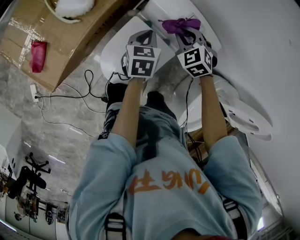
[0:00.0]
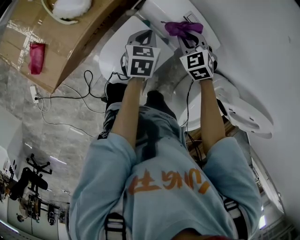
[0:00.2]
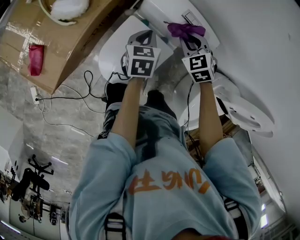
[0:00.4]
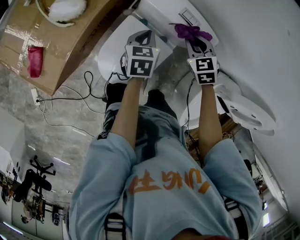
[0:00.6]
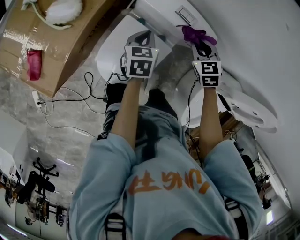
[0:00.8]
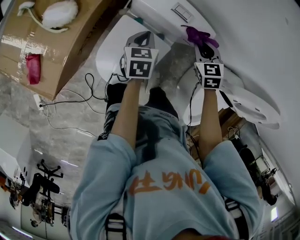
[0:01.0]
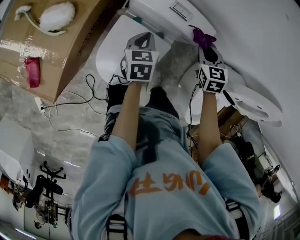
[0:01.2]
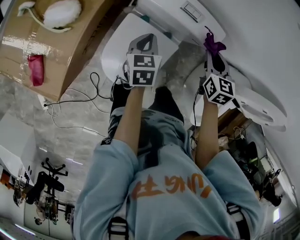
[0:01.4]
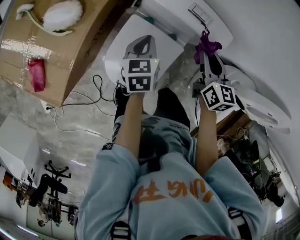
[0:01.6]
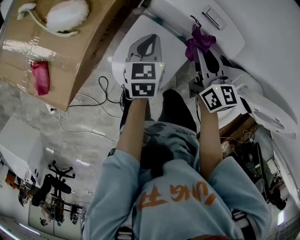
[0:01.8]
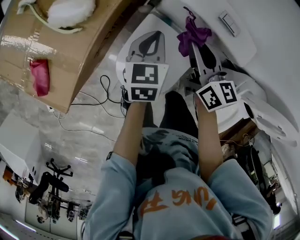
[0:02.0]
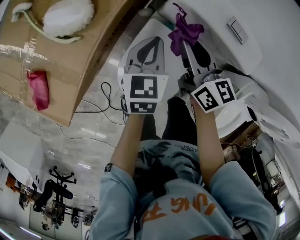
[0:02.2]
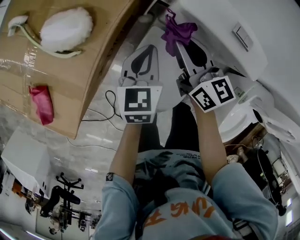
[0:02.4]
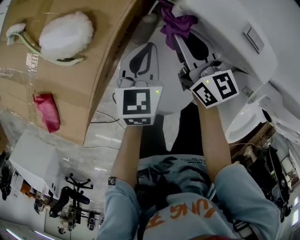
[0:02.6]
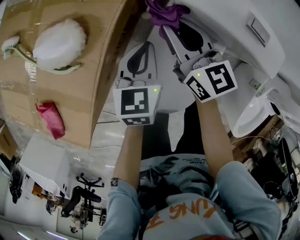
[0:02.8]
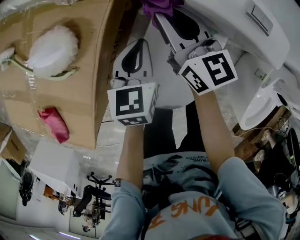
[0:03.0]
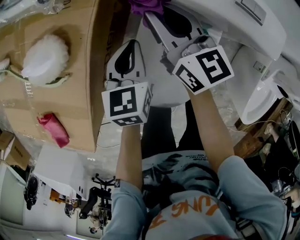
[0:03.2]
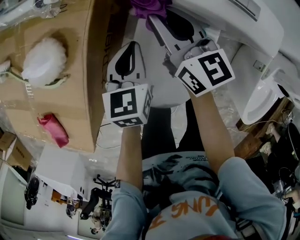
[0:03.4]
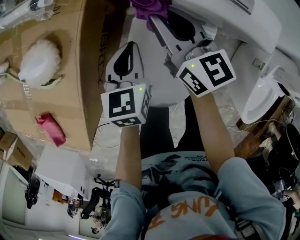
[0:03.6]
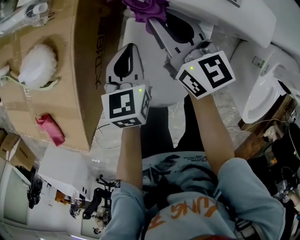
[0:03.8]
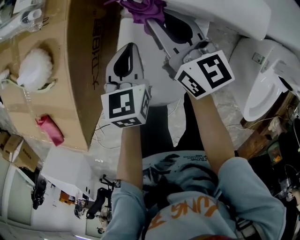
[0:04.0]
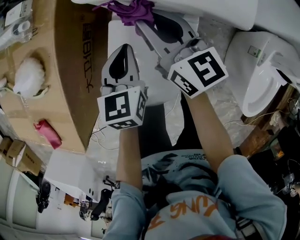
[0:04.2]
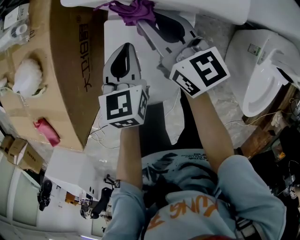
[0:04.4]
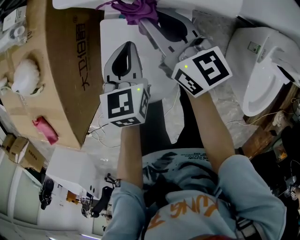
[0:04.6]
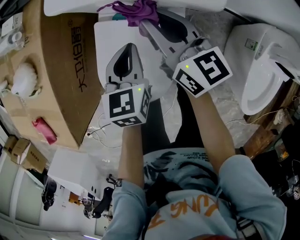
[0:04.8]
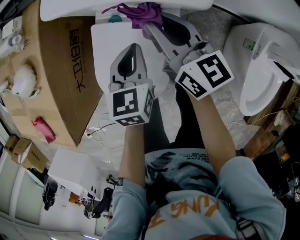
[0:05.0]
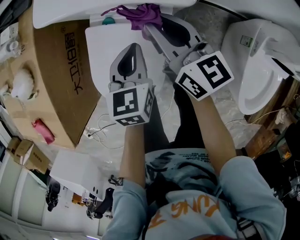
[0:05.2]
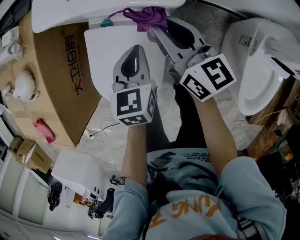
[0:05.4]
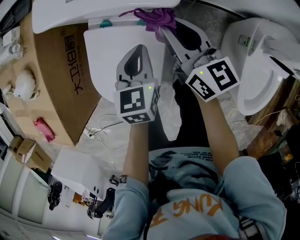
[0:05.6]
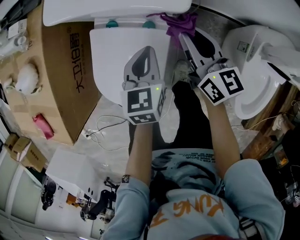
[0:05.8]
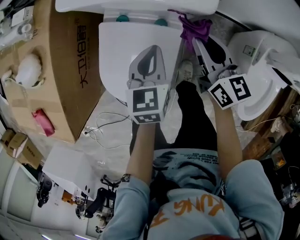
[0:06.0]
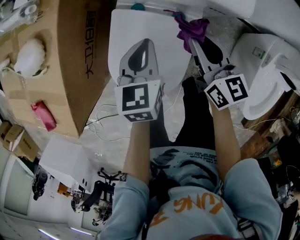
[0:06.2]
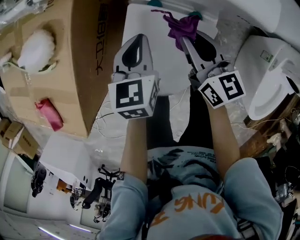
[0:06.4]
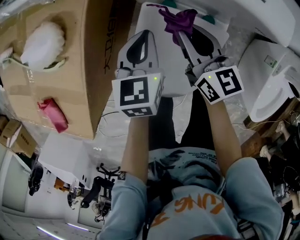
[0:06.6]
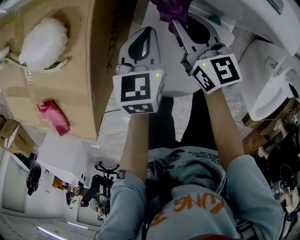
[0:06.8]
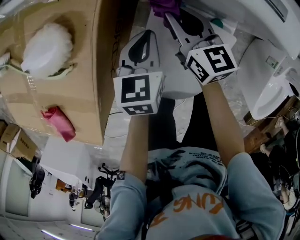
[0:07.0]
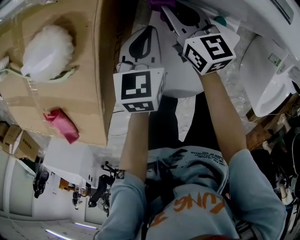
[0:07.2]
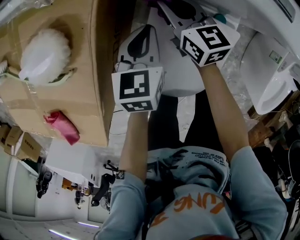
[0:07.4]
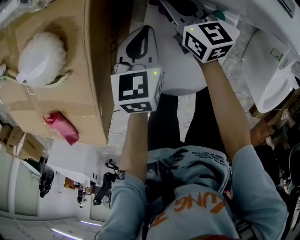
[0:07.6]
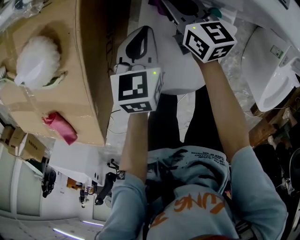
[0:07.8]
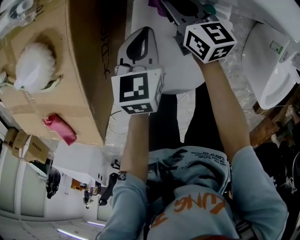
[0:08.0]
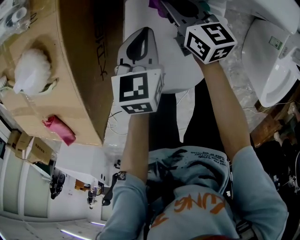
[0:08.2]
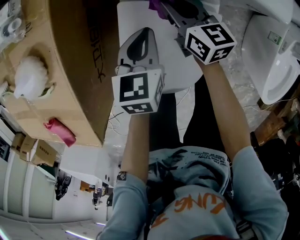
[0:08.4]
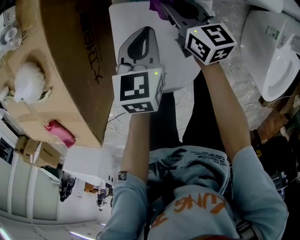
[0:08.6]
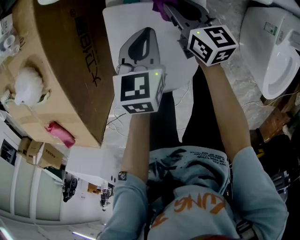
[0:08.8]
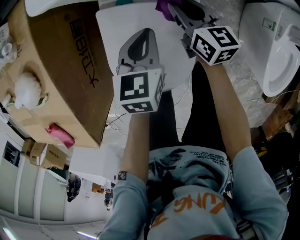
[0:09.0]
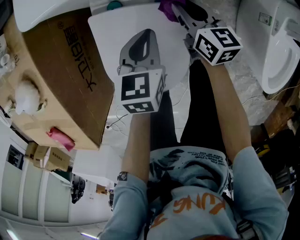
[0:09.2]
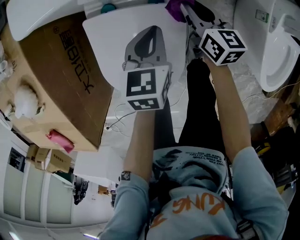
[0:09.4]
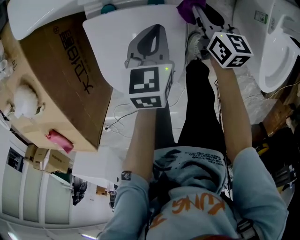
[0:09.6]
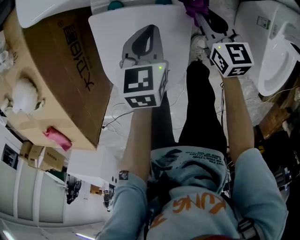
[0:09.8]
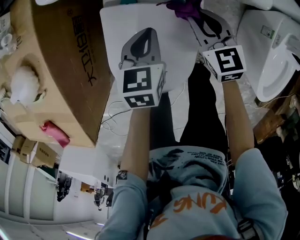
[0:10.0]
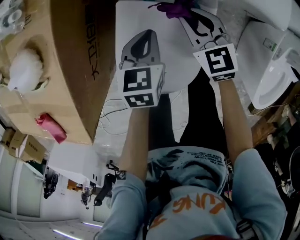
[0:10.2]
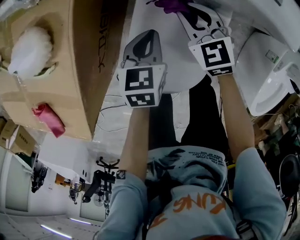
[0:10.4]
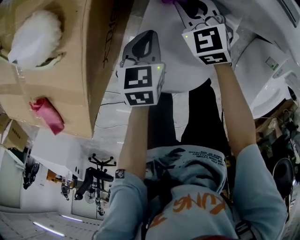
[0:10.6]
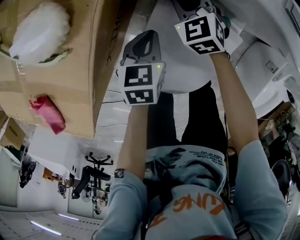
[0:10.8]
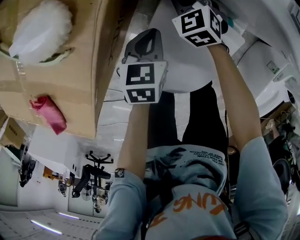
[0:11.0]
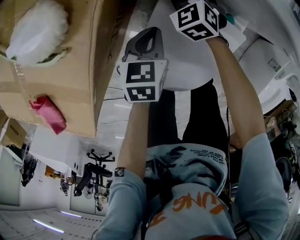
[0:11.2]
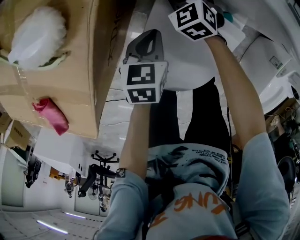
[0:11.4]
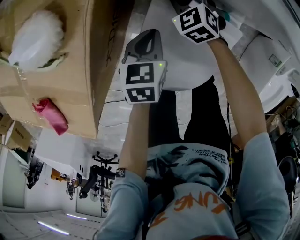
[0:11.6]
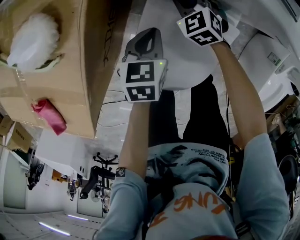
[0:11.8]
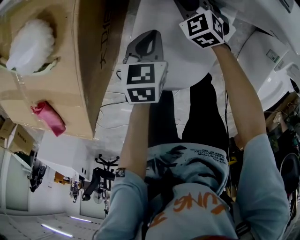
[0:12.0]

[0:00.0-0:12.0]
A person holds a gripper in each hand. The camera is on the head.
0:00.0 to 0:01.6: The right gripper travels to the right and backward by about 10 cm, and rolls clockwise, seen from behind, by some 60 degrees.
0:01.6 to 0:03.0: The right gripper is displaced to the left, forward and downward by approximately 30 cm, and changes its angle by some 20 degrees. The left gripper moves to the left, downward and forward, some 15 cm.
0:03.0 to 0:04.4: The grippers both shift to the right and backward by about 15 cm.
0:04.4 to 0:06.0: The right gripper travels to the right and backward by some 20 cm, while the left gripper heads to the right and backward, covering some 15 cm.
0:06.0 to 0:07.6: The left gripper shifts roughly 25 cm to the left, while the right gripper shifts about 35 cm to the left, forward and downward.
0:07.6 to 0:09.0: The grippers both shift to the right by about 20 cm.
0:09.0 to 0:10.4: Both grippers move to the left, some 15 cm. The right gripper rolls counterclockwise, seen from behind, by some 50 degrees.
0:10.4 to 0:12.0: The right gripper goes approximately 10 cm downward, and travels to the left and back again, roughly 10 cm each way.

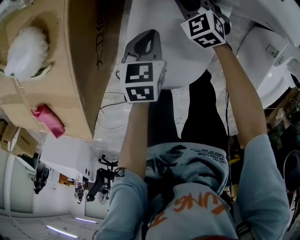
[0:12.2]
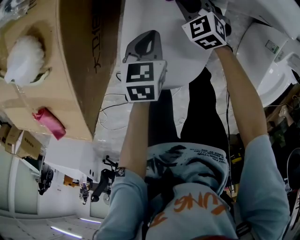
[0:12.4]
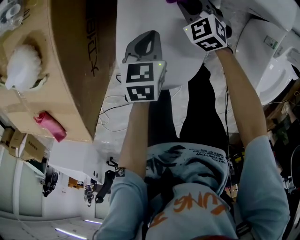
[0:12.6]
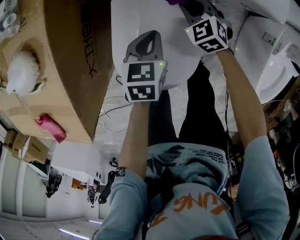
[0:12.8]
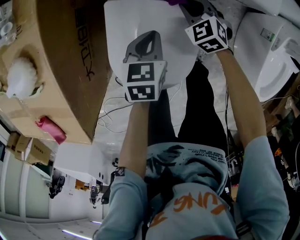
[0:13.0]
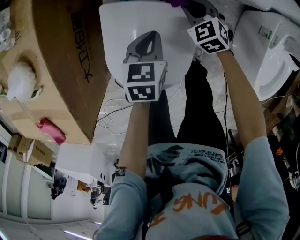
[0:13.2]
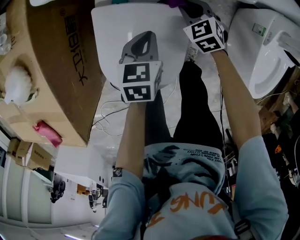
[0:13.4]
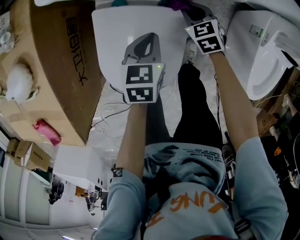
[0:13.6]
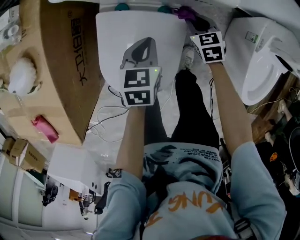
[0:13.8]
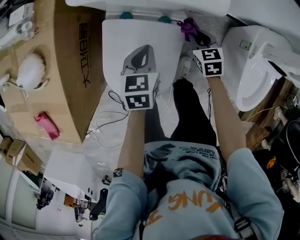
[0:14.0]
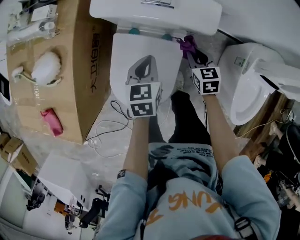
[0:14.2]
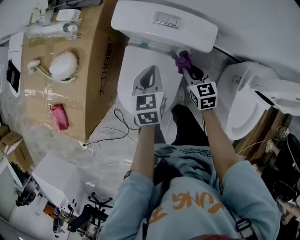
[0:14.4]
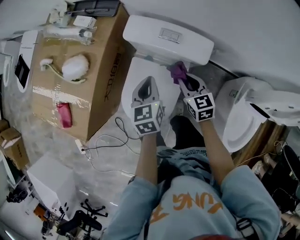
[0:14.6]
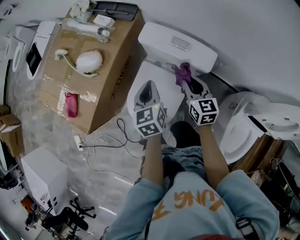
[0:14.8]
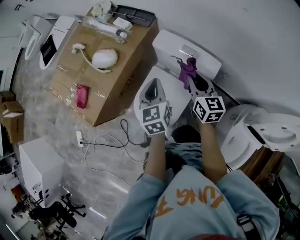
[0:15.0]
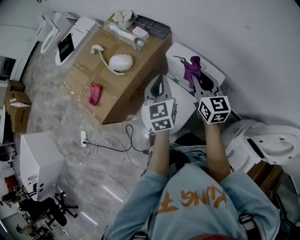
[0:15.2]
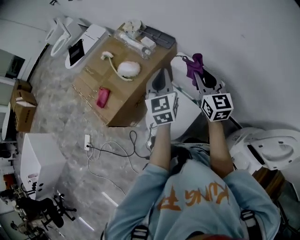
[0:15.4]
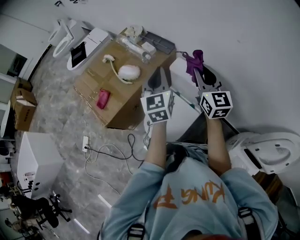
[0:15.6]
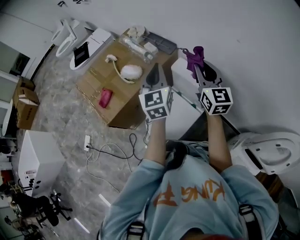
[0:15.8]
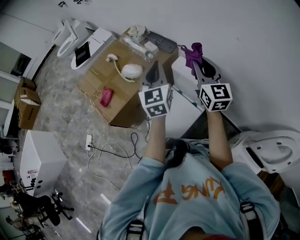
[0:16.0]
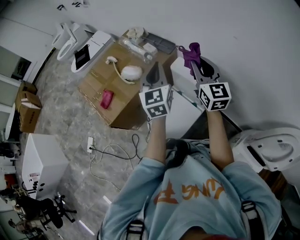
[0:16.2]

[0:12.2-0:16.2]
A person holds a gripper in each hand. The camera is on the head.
0:12.2 to 0:13.6: The grippers both shift to the right by roughly 15 cm. The right gripper turns by roughly 20 degrees.
0:13.6 to 0:14.8: Both grippers travel together upward, some 30 cm. The left gripper rotates approximately 50 degrees; the right gripper changes its angle by approximately 30 degrees.
0:14.8 to 0:16.2: The two grippers go about 30 cm upward. The right gripper swivels approximately 30 degrees. Meanwhile the left gripper swivels some 30 degrees.

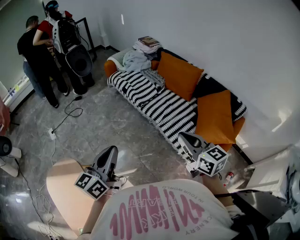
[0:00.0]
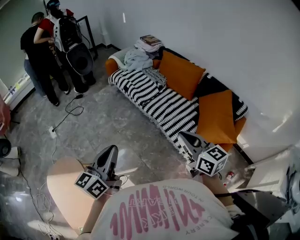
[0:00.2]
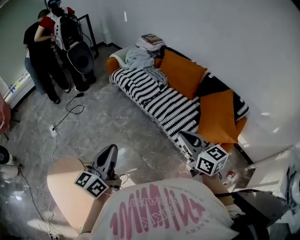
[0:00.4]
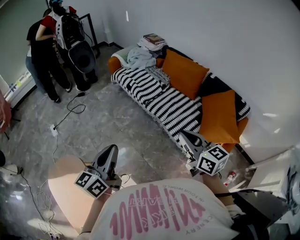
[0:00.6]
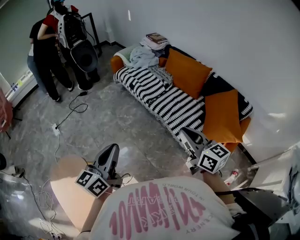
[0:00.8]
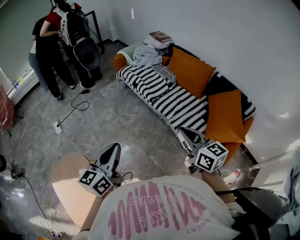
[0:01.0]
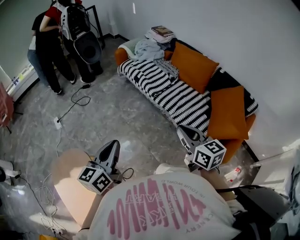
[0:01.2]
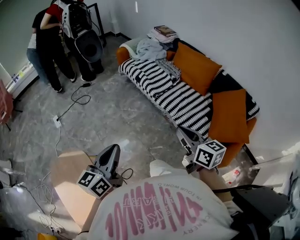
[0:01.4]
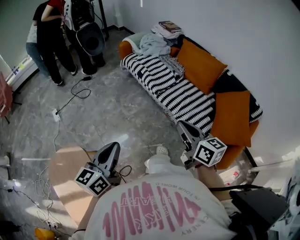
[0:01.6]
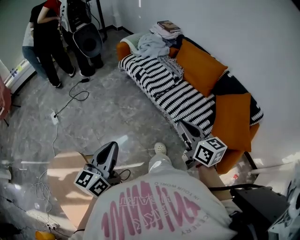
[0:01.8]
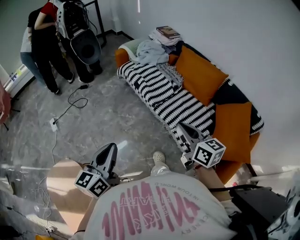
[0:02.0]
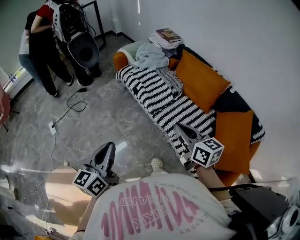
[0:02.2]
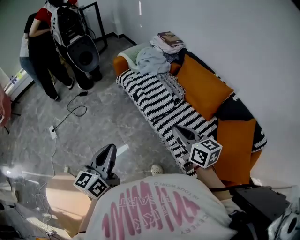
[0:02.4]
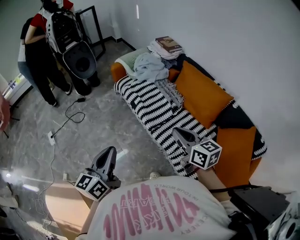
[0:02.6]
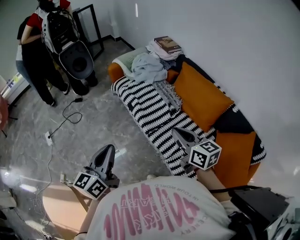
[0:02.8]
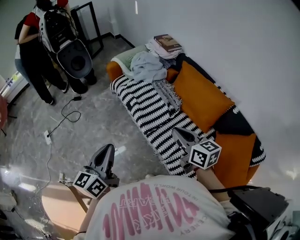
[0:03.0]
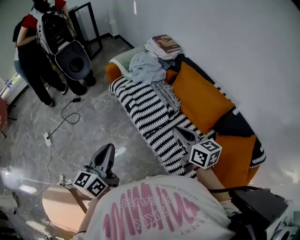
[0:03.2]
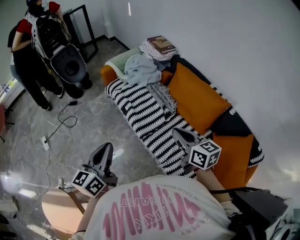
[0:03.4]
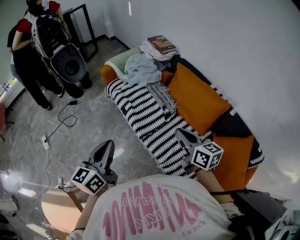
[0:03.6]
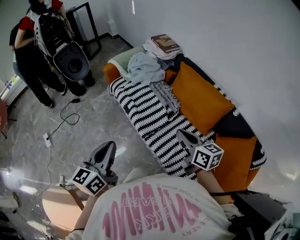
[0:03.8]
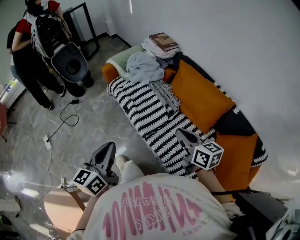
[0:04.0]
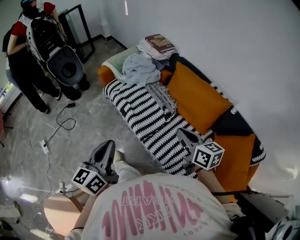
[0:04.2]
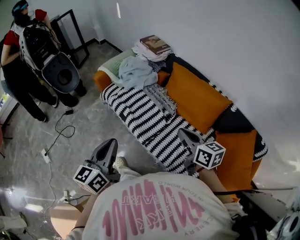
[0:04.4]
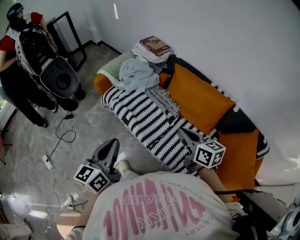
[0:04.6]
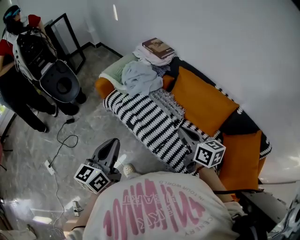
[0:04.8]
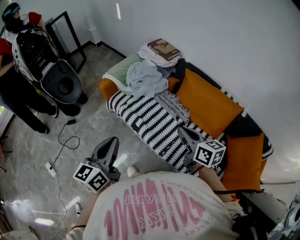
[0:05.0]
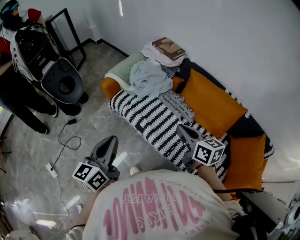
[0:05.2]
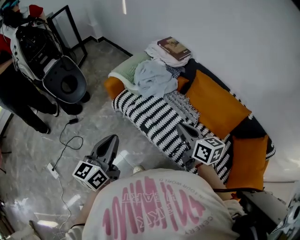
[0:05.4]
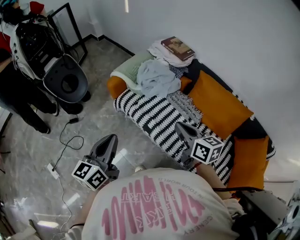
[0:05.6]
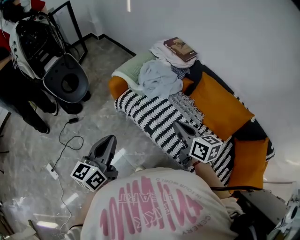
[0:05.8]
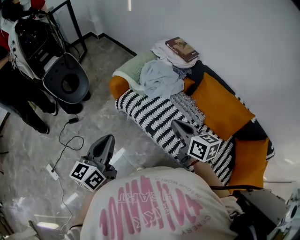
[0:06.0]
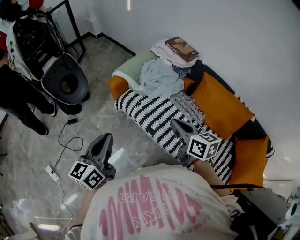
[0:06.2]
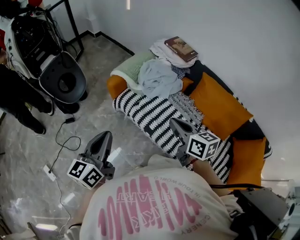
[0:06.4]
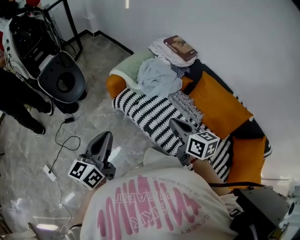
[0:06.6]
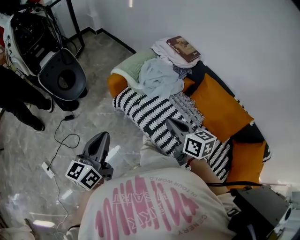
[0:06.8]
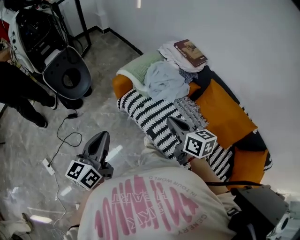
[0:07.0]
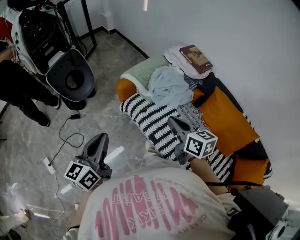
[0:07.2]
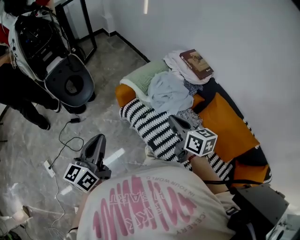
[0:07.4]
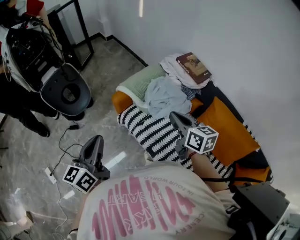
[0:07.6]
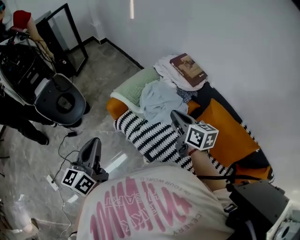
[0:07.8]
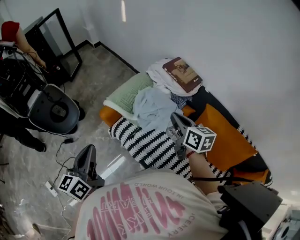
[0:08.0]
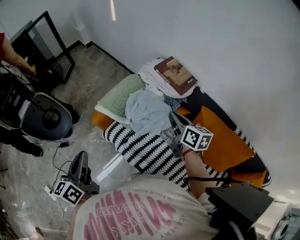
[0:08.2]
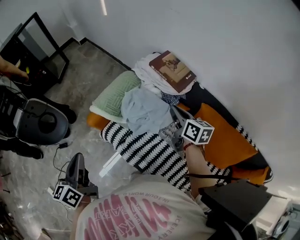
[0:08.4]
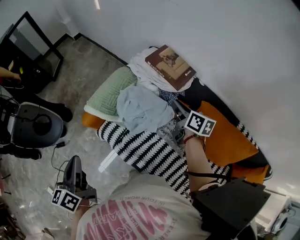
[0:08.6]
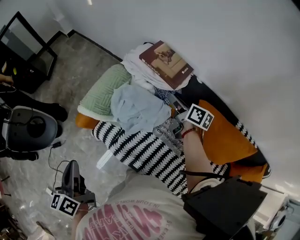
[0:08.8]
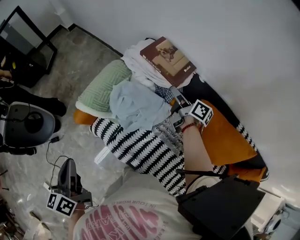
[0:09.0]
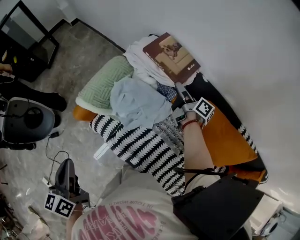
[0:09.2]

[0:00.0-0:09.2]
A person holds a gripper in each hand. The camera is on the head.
0:00.0 to 0:01.6: The right gripper is displaced to the left and forward by approximately 15 cm; the left gripper travels to the left by about 10 cm.
0:01.6 to 0:03.0: Both grippers move forward, some 30 cm.
0:03.0 to 0:04.6: The right gripper travels forward by roughly 10 cm, while the left gripper moves forward, approximately 15 cm.
0:04.6 to 0:06.2: Both grippers move to the left and forward, approximately 30 cm.
0:06.2 to 0:07.6: The right gripper heads forward, covering approximately 20 cm; the left gripper moves forward, approximately 10 cm.
0:07.6 to 0:09.2: The right gripper goes some 40 cm forward, to the right and downward, rolls clockwise, seen from behind, by about 50 degrees, and opens its fingers. The left gripper moves forward, downward and to the right, approximately 15 cm, and changes its angle by about 20 degrees.
